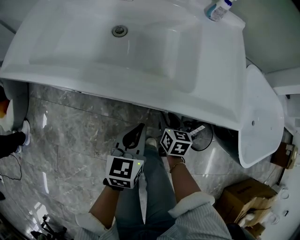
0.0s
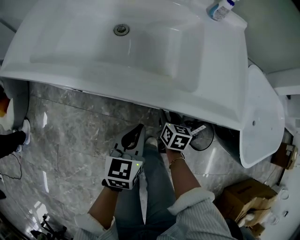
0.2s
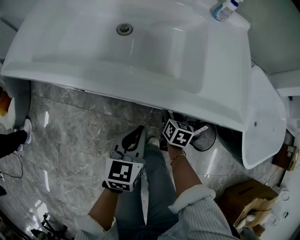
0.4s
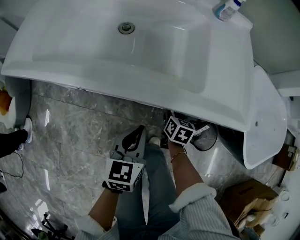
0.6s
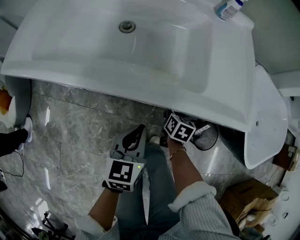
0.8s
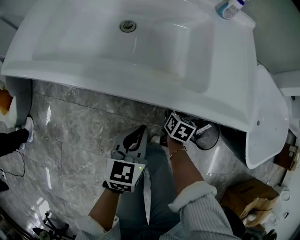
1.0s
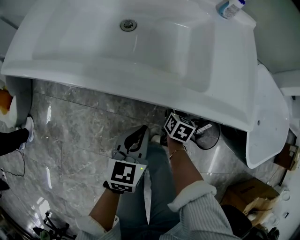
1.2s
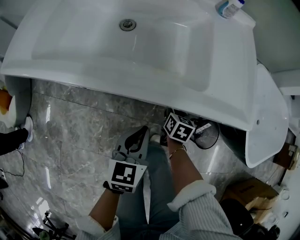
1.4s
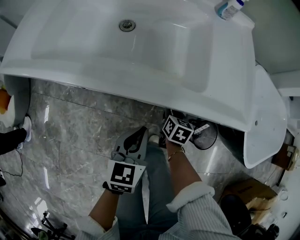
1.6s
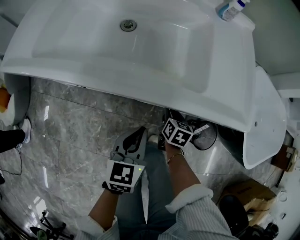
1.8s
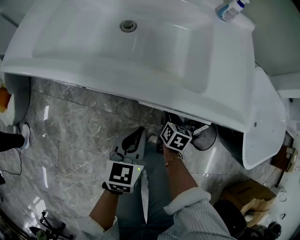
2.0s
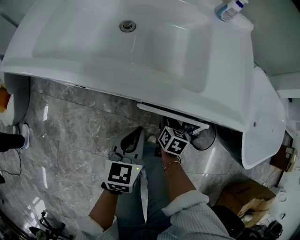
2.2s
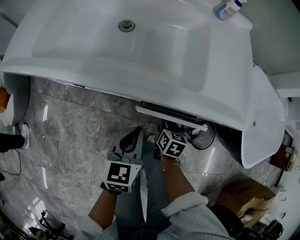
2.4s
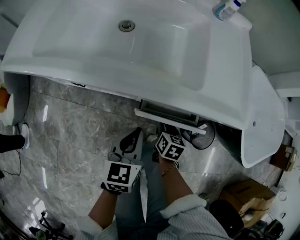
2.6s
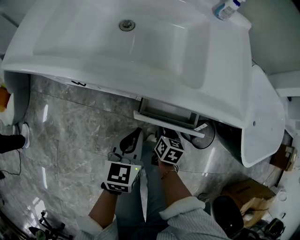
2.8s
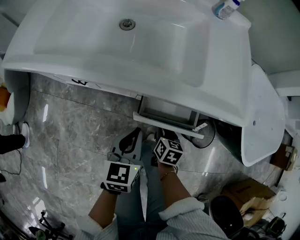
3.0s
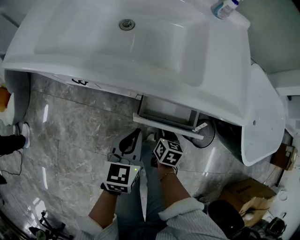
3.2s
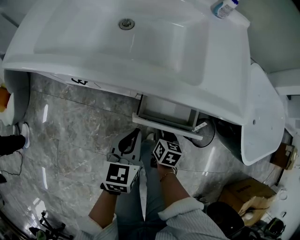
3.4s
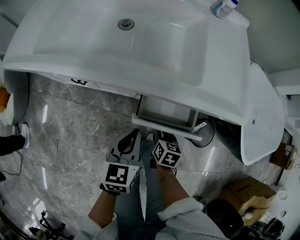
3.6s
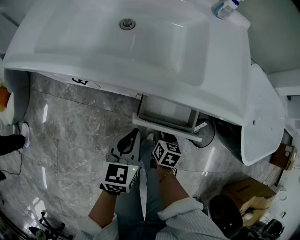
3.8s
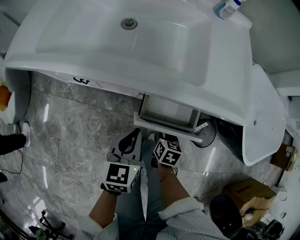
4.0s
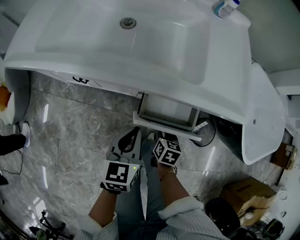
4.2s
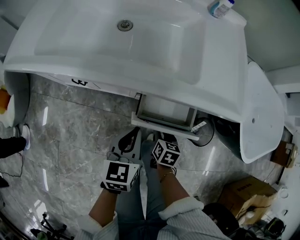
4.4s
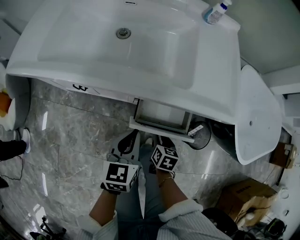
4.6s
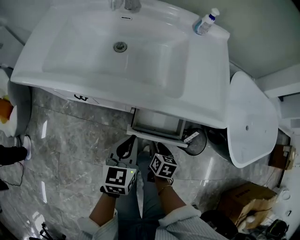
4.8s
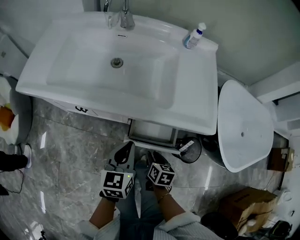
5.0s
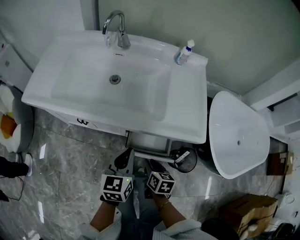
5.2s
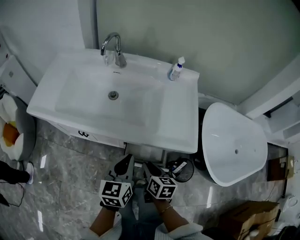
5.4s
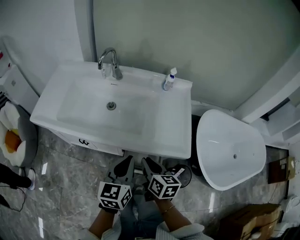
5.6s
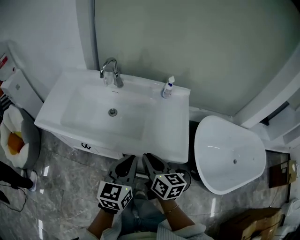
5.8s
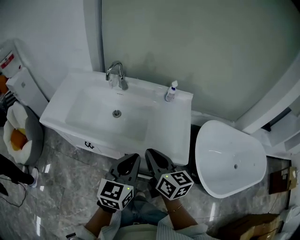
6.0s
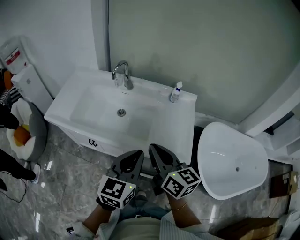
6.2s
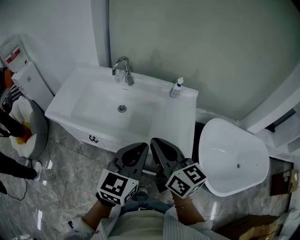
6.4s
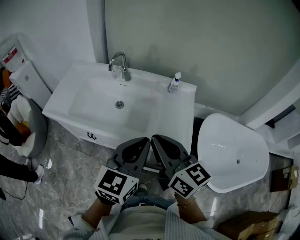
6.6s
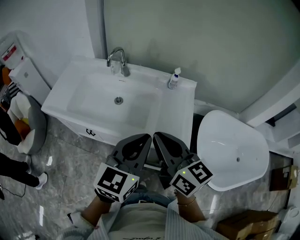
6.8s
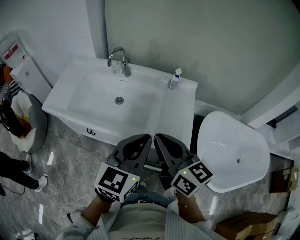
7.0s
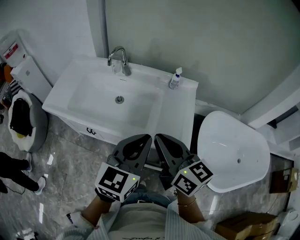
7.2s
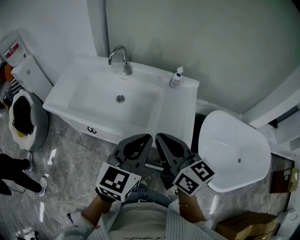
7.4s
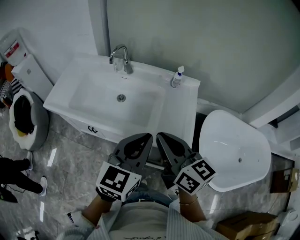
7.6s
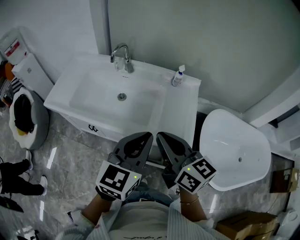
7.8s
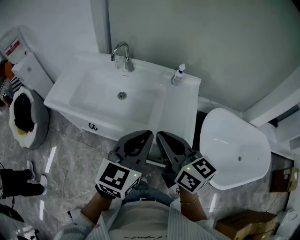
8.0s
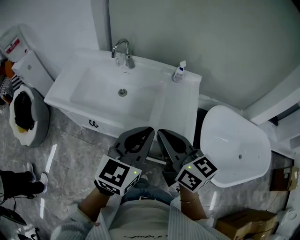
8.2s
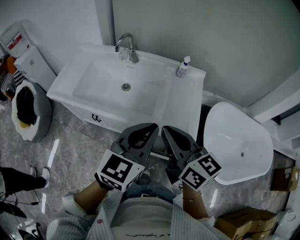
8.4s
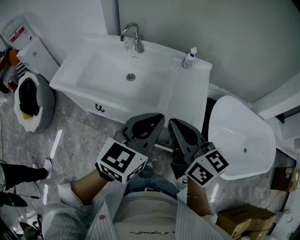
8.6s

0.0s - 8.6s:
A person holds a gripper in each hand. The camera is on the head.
0.0s - 1.4s: The right gripper ends up some 5 cm from where it was.
1.4s - 2.8s: The right gripper heads backward, covering roughly 10 cm.
2.8s - 4.4s: The grippers stay close to where they were, moving slightly.
4.4s - 5.8s: The two grippers go about 35 cm upward. The right gripper points its fingers some 30 degrees further upward.
5.8s - 7.2s: The two grippers go about 10 cm upward. The right gripper changes its angle by approximately 20 degrees.
7.2s - 8.6s: The grippers move only a little.

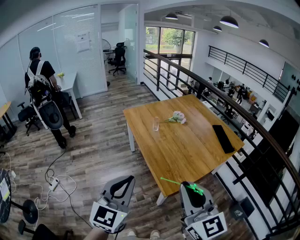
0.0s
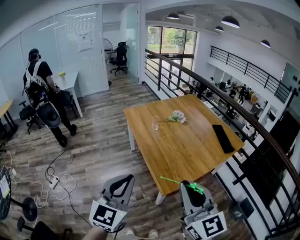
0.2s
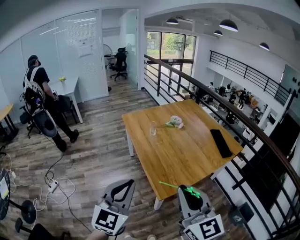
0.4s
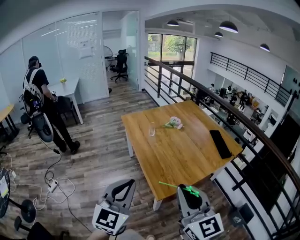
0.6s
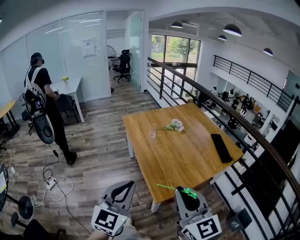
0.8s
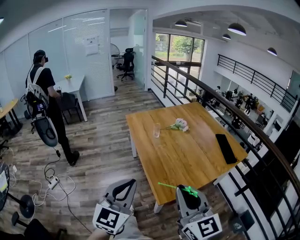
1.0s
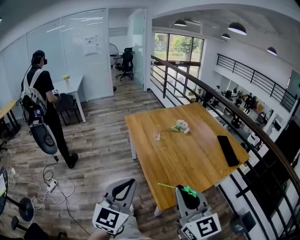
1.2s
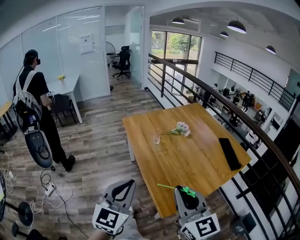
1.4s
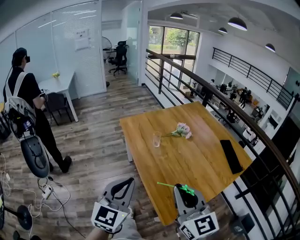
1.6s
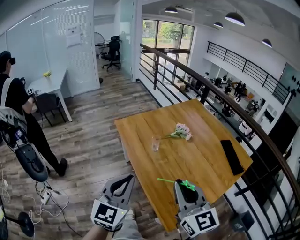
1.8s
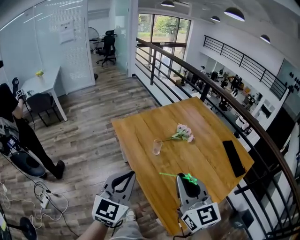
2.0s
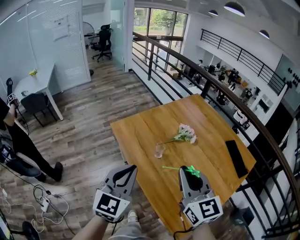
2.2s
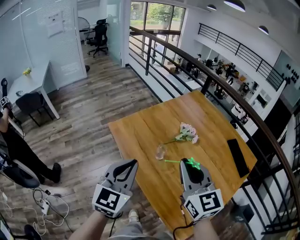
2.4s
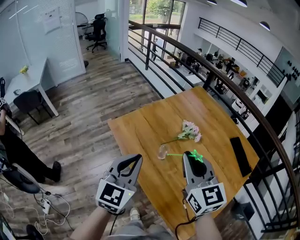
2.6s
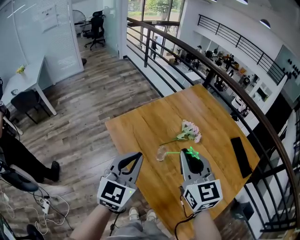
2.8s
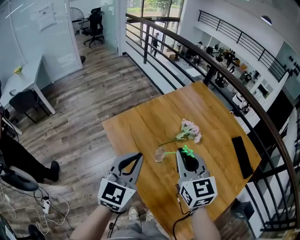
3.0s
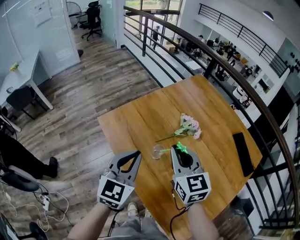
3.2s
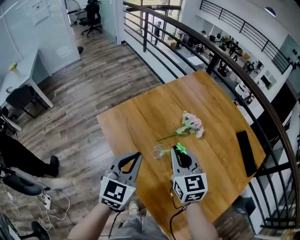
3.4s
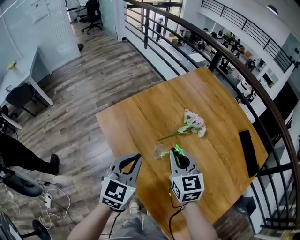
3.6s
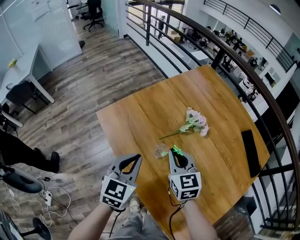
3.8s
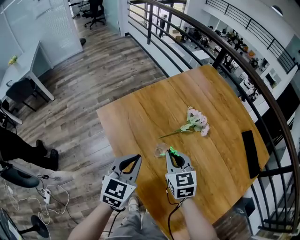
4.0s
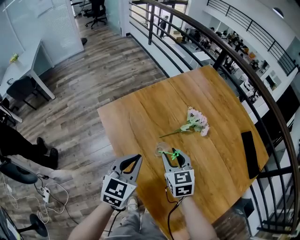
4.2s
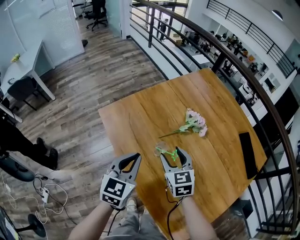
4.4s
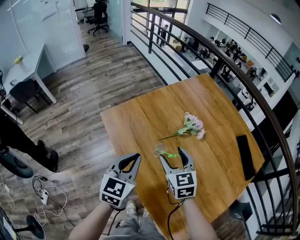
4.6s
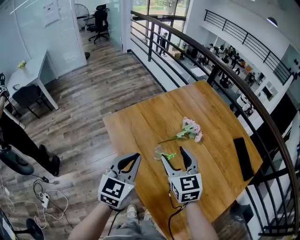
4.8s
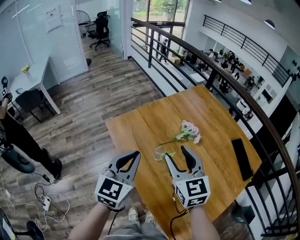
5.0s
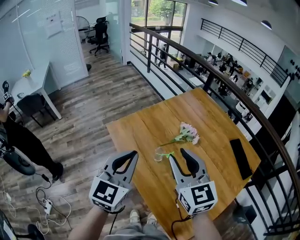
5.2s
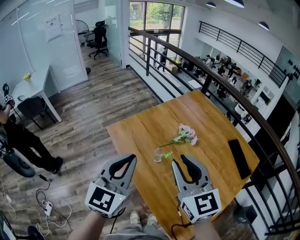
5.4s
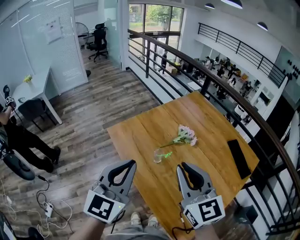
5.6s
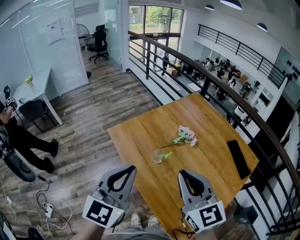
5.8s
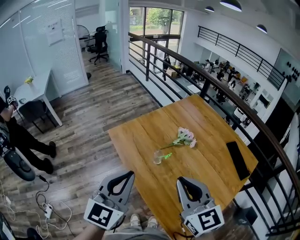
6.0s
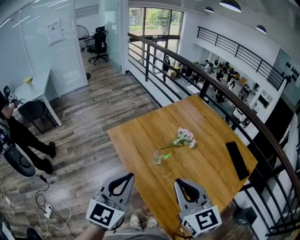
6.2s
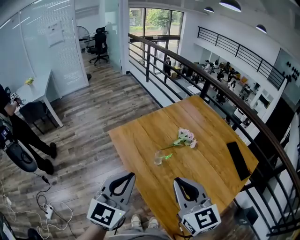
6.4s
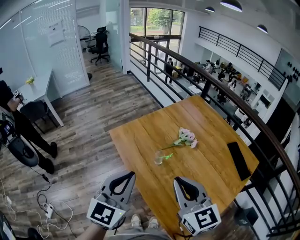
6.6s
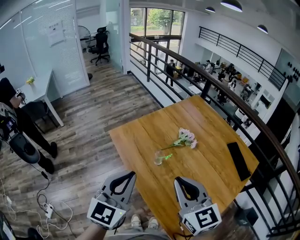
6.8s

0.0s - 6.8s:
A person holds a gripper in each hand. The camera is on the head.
0.0s - 1.4s: The left gripper travels forward by approximately 10 cm, while the right gripper moves forward and downward, some 15 cm.
1.4s - 2.8s: The two grippers travel together, forward, roughly 40 cm. The right gripper swivels some 20 degrees.
2.8s - 4.0s: Both grippers move downward, some 20 cm.
4.0s - 5.4s: Both grippers travel together upward and backward, roughly 25 cm. The right gripper swivels approximately 20 degrees, and opens and closes again, while the left gripper rotates roughly 20 degrees.
5.4s - 6.8s: The two grippers go some 5 cm backward.

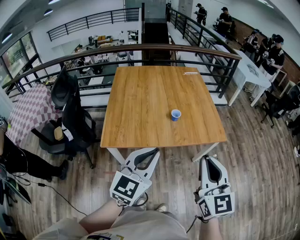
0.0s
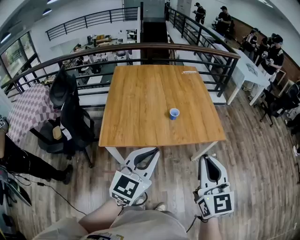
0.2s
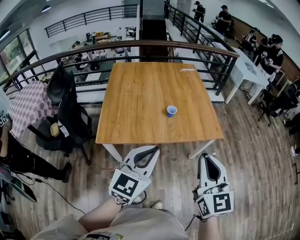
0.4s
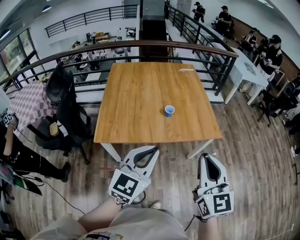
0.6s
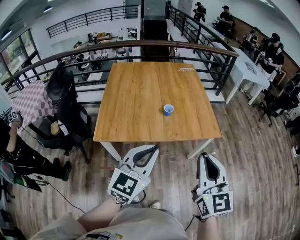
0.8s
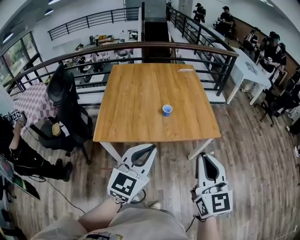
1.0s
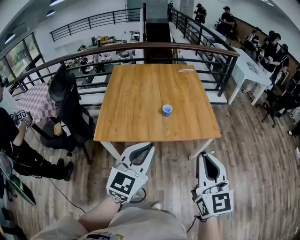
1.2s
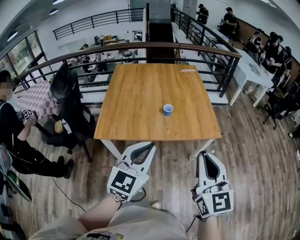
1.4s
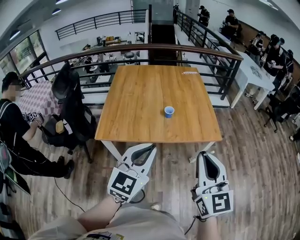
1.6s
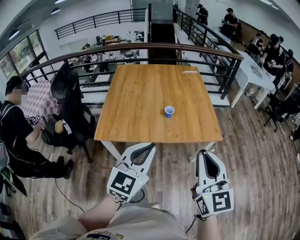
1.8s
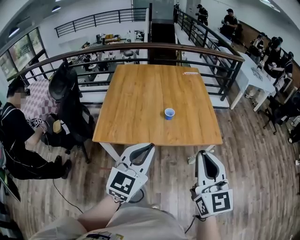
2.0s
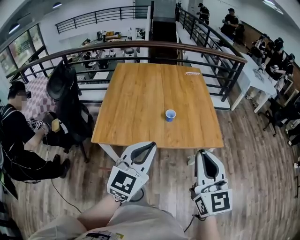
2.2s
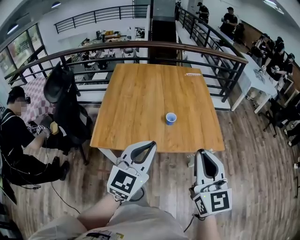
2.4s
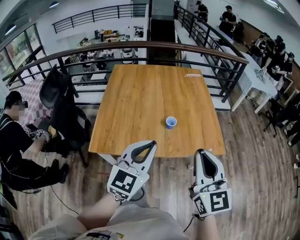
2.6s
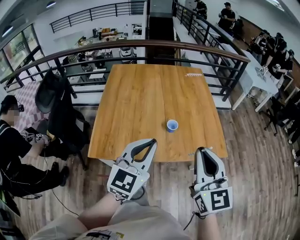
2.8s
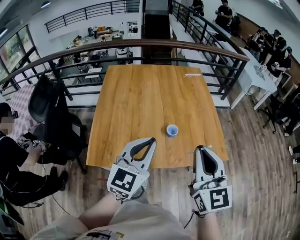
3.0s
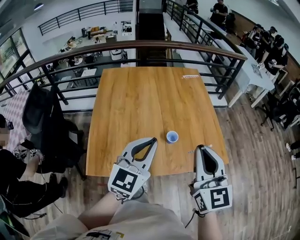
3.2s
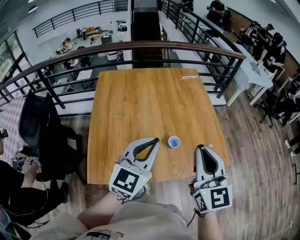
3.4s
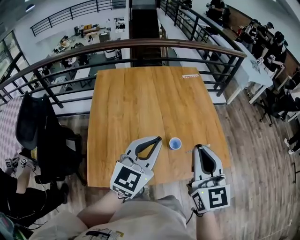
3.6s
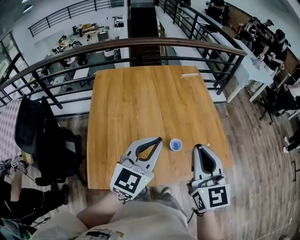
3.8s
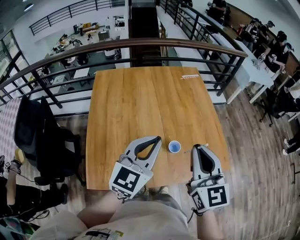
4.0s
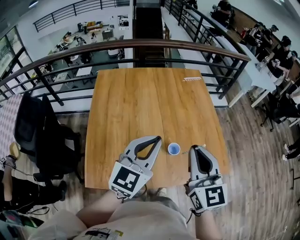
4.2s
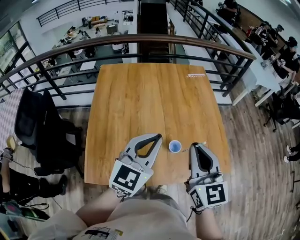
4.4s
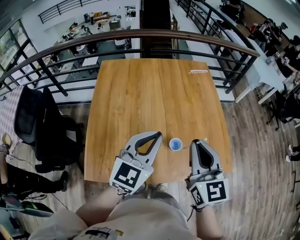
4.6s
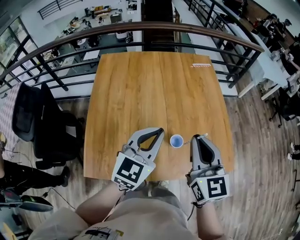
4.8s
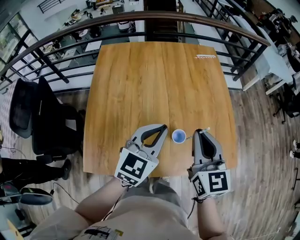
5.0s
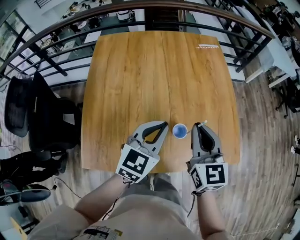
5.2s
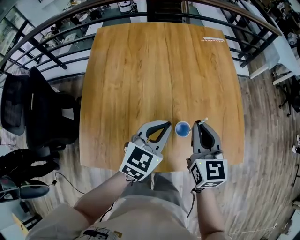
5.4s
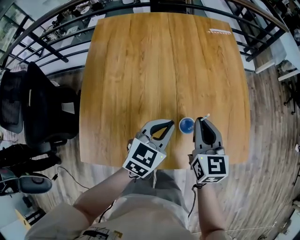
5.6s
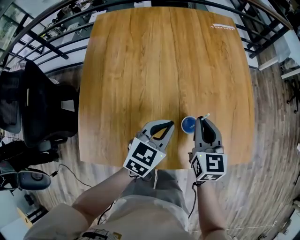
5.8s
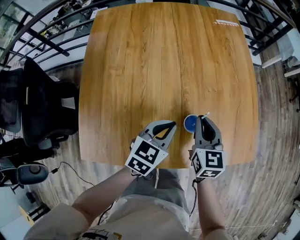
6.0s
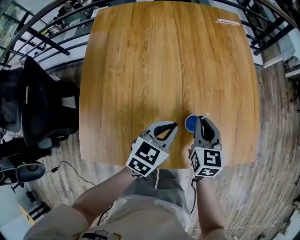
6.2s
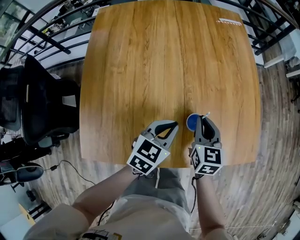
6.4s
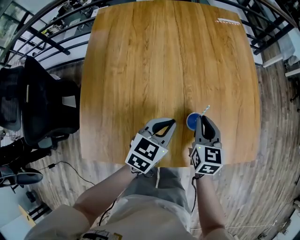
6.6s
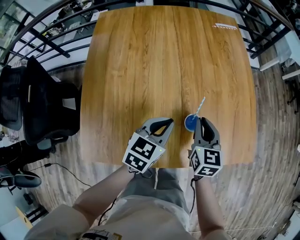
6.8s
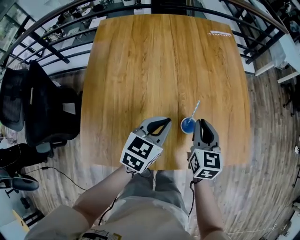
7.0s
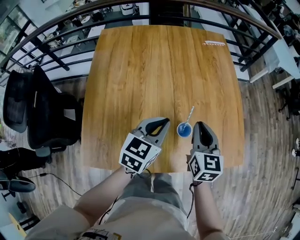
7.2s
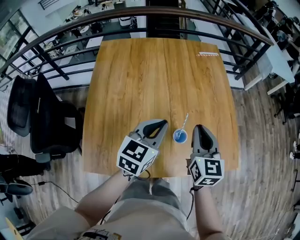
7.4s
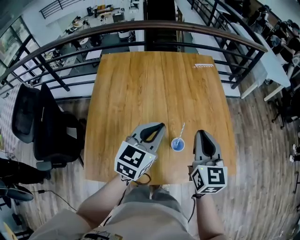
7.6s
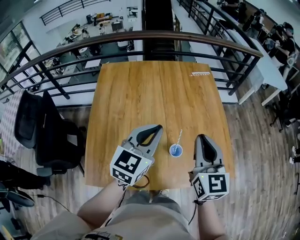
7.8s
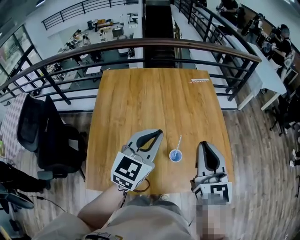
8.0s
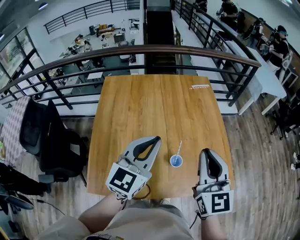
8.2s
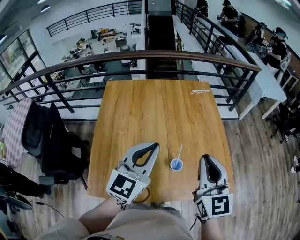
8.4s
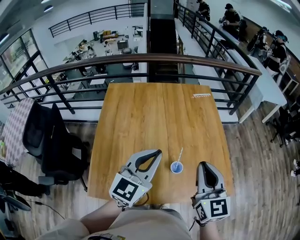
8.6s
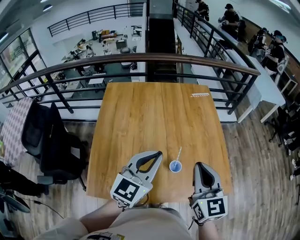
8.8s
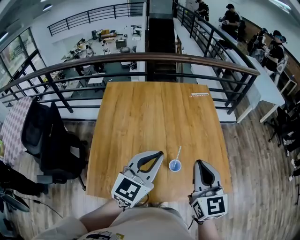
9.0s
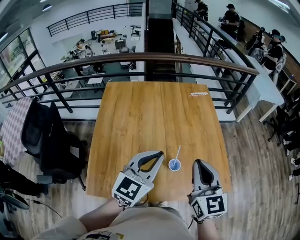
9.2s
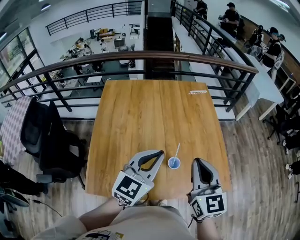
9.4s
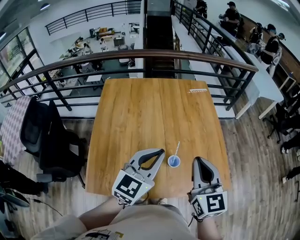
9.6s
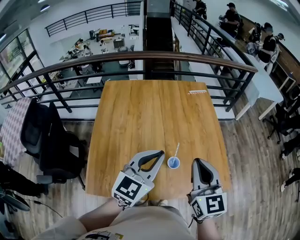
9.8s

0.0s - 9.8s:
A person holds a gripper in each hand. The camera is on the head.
0.0s - 1.4s: The two grippers go roughly 10 cm to the right.
1.4s - 2.8s: Both grippers move forward, approximately 20 cm.
2.8s - 4.2s: The left gripper heads forward, covering some 20 cm; the right gripper shifts approximately 25 cm forward and to the left.
4.2s - 5.6s: Both grippers travel together downward and forward, some 25 cm. The left gripper turns by about 30 degrees.
5.6s - 7.0s: The left gripper moves roughly 10 cm downward and comes back.
7.0s - 8.4s: Both grippers move upward, about 25 cm. The left gripper swivels about 30 degrees; the right gripper swivels approximately 30 degrees.
8.4s - 9.8s: The left gripper shifts by about 5 cm.
